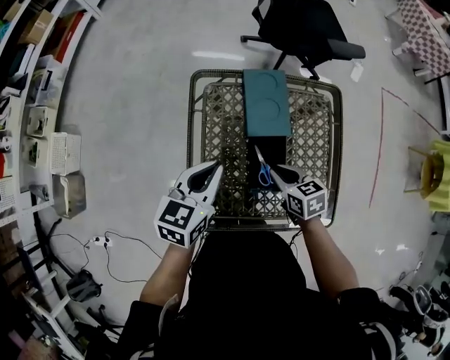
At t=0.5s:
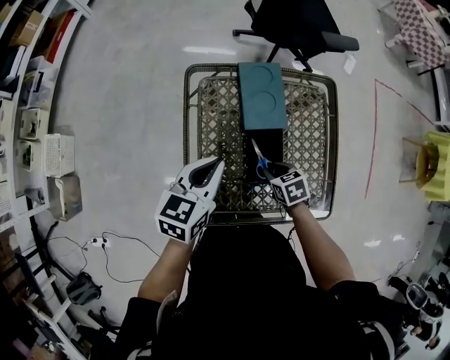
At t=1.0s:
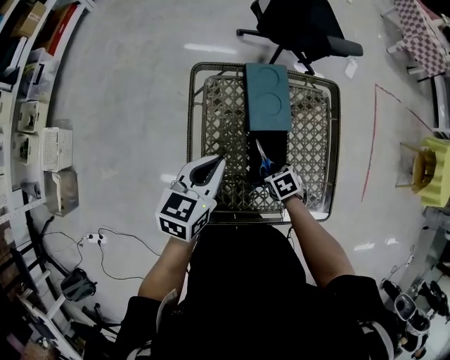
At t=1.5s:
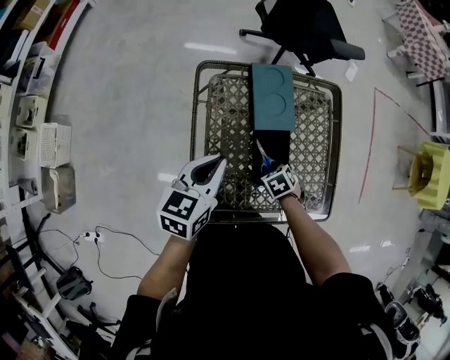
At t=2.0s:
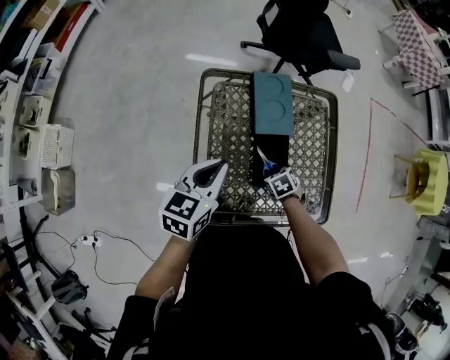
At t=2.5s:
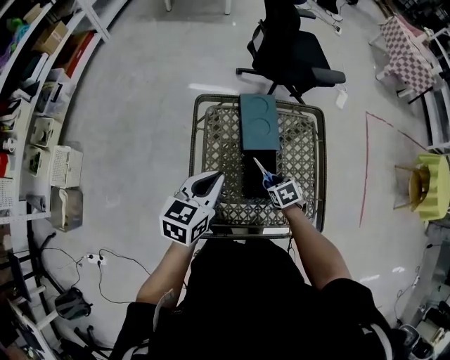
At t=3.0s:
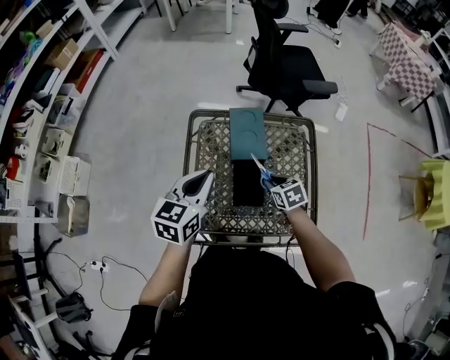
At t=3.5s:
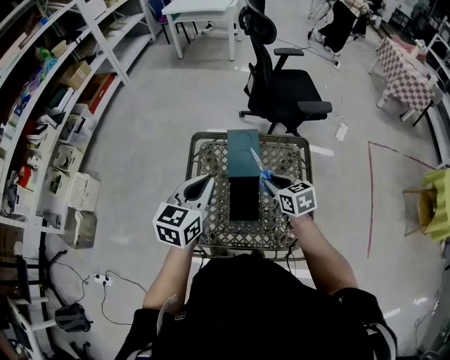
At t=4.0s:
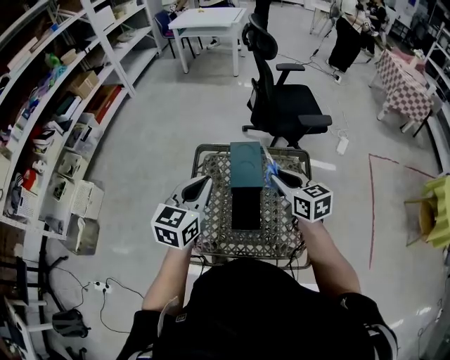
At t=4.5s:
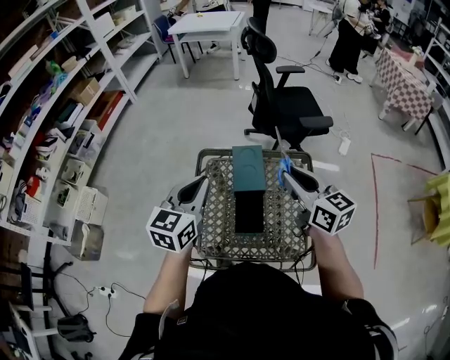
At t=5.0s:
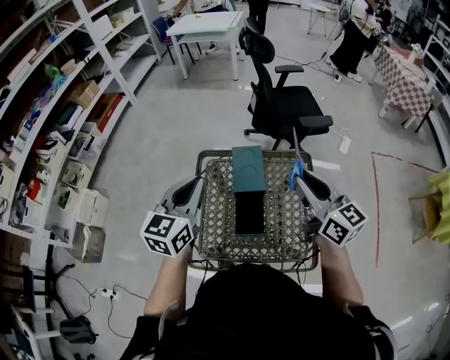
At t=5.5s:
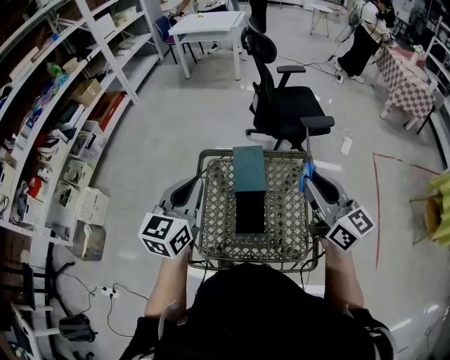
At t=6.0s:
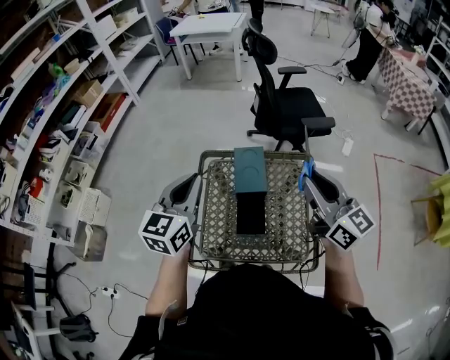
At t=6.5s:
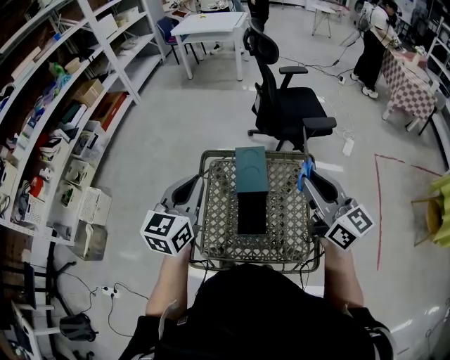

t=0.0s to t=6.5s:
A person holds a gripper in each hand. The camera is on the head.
t=0.0s to t=2.0s: The right gripper shifts approximately 15 cm downward, and tilts its fingers roughly 30 degrees downward.
t=2.0s to t=4.5s: The left gripper is displaced upward by some 15 cm, and changes its angle by about 30 degrees. The right gripper moves upward, some 40 cm, and angles its fingers upward, by approximately 70 degrees.
t=4.5s to t=6.5s: The right gripper is displaced upward by some 5 cm.

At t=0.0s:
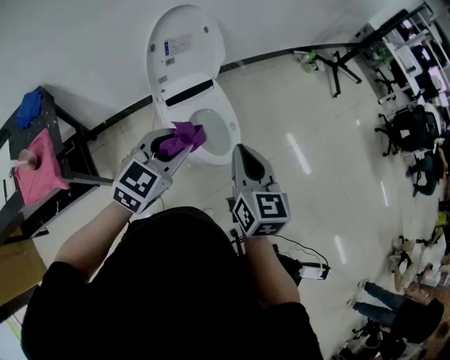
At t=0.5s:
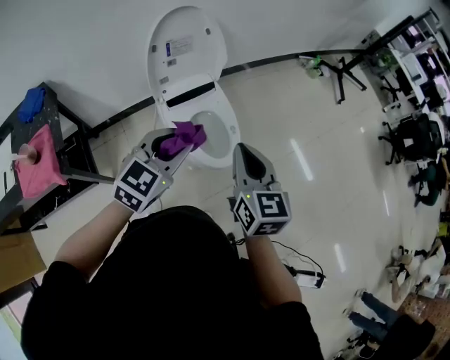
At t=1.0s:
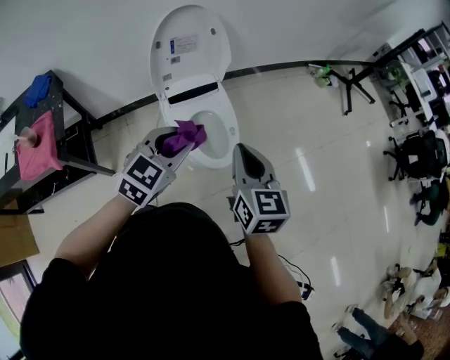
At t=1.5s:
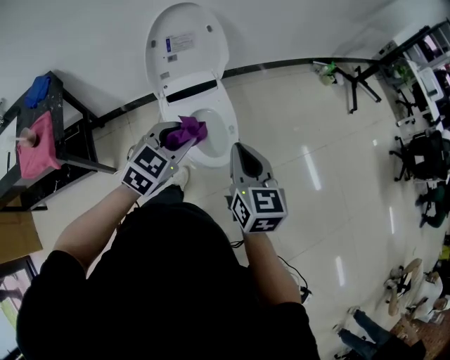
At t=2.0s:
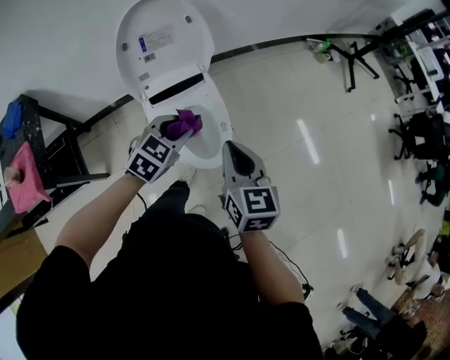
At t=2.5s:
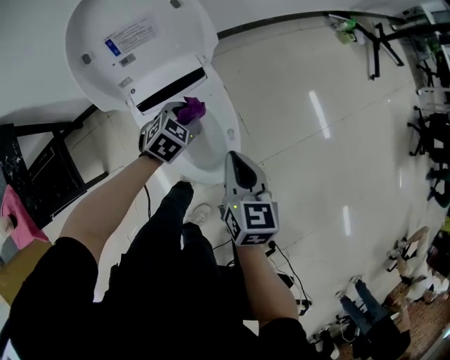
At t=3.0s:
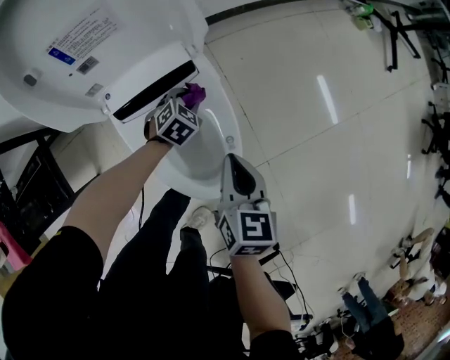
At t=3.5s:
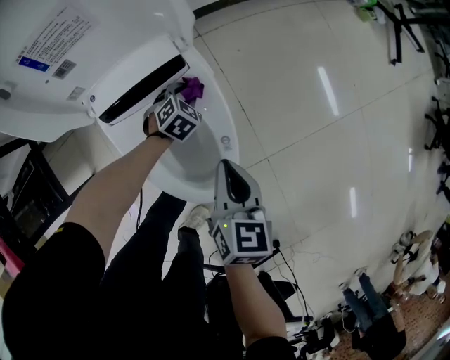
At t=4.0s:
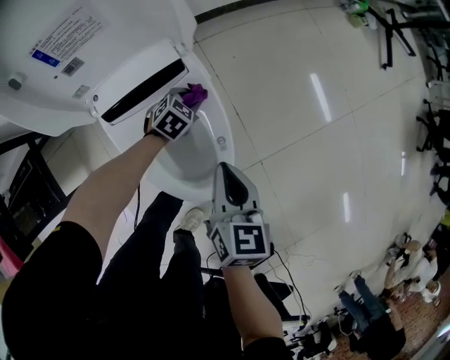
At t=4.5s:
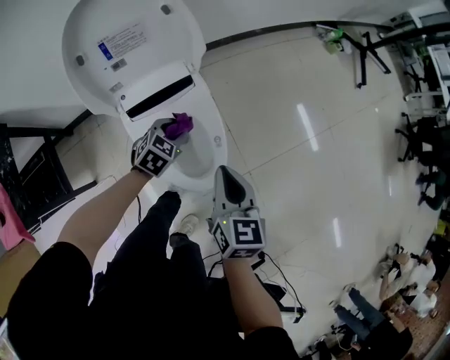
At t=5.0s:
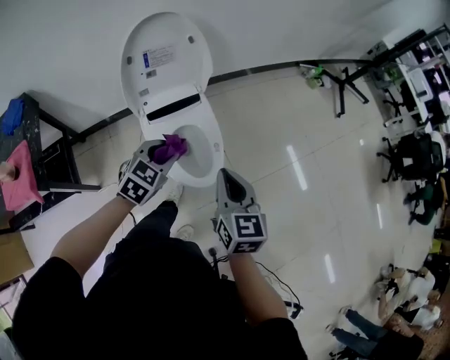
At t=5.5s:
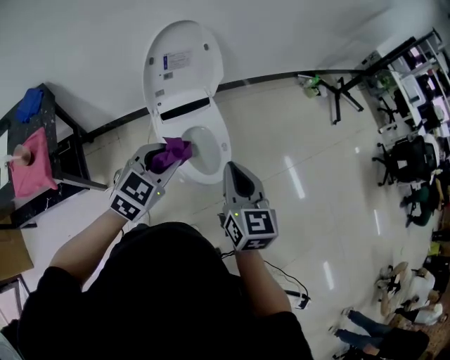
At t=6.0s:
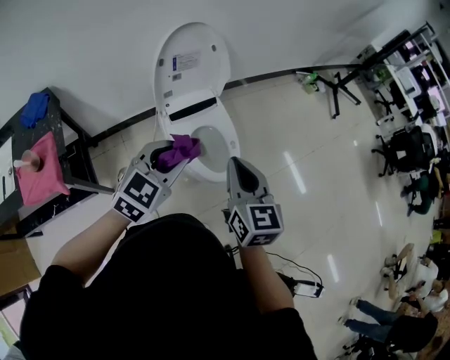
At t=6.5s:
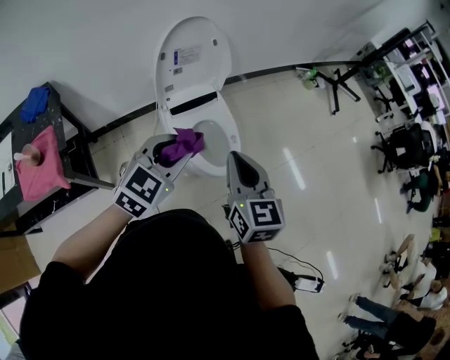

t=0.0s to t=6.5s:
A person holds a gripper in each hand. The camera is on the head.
t=0.0s to t=2.0s: Both grippers move forward, downward and to the right, about 20 cm.
t=2.0s to t=4.5s: The right gripper goes roughly 15 cm downward and forward, while the left gripper heads downward and forward, covering roughly 25 cm.
t=4.5s to t=6.5s: The left gripper moves upward and backward, about 50 cm, and rotates approximately 30 degrees. Meanwhile the right gripper moves upward, backward and to the left, about 35 cm, and turns by some 20 degrees.

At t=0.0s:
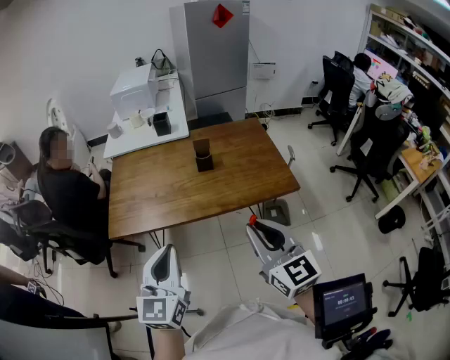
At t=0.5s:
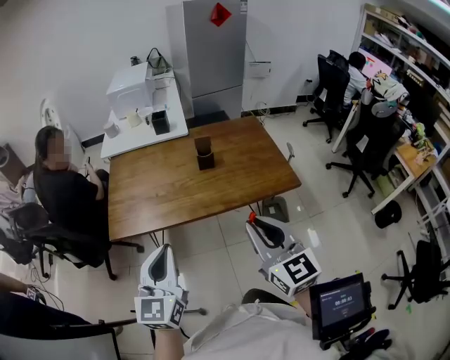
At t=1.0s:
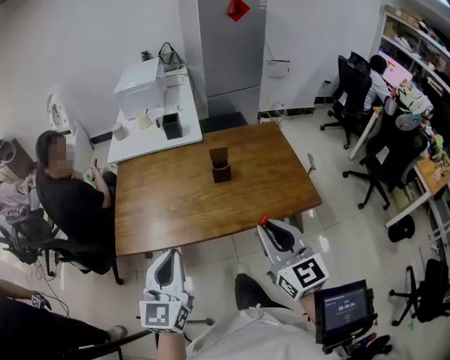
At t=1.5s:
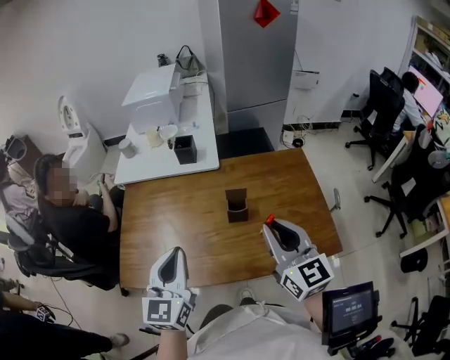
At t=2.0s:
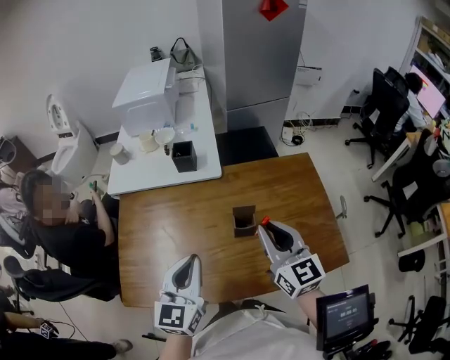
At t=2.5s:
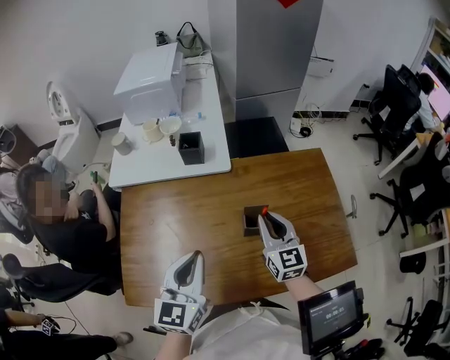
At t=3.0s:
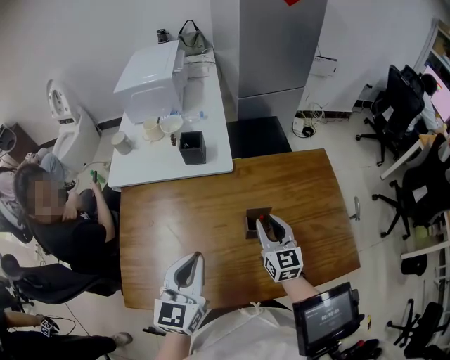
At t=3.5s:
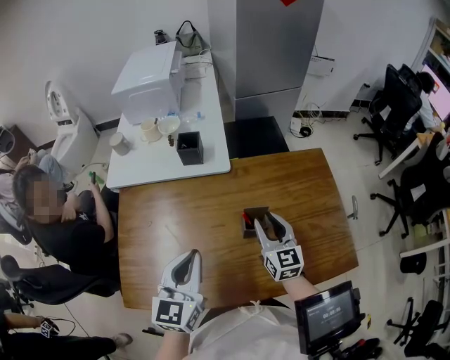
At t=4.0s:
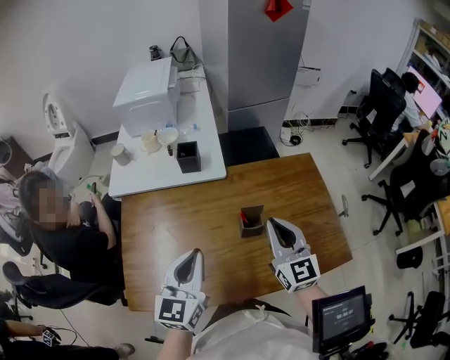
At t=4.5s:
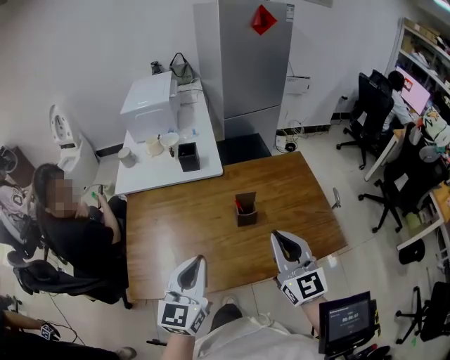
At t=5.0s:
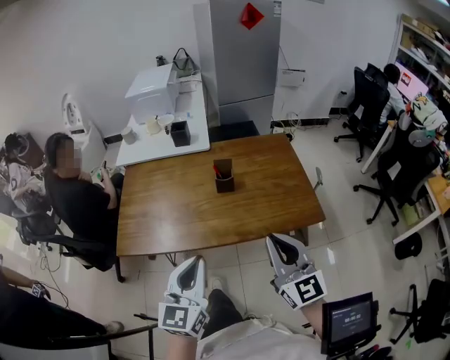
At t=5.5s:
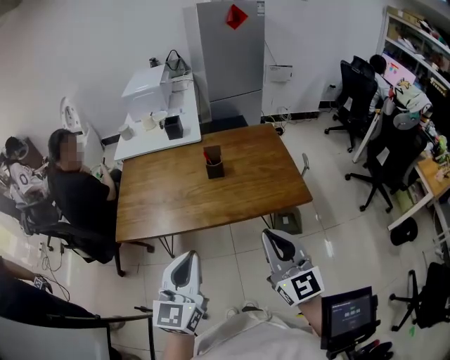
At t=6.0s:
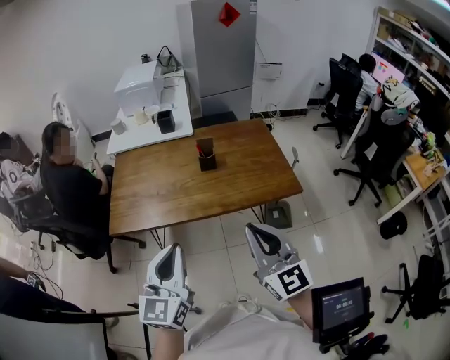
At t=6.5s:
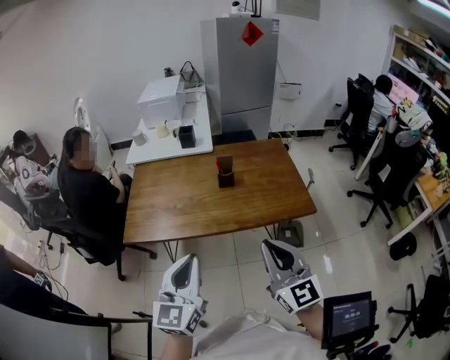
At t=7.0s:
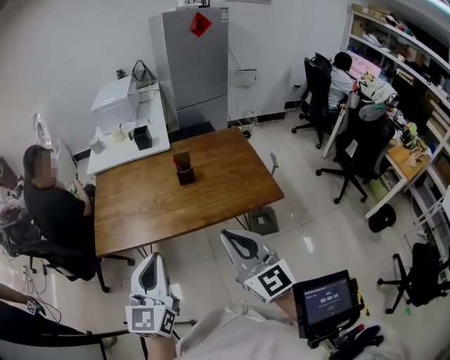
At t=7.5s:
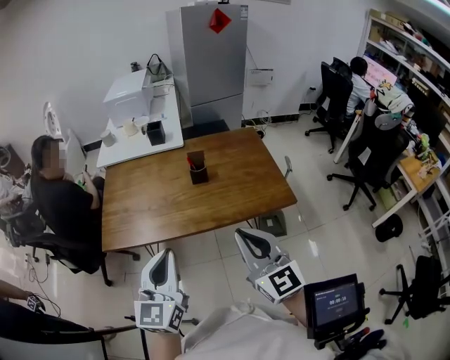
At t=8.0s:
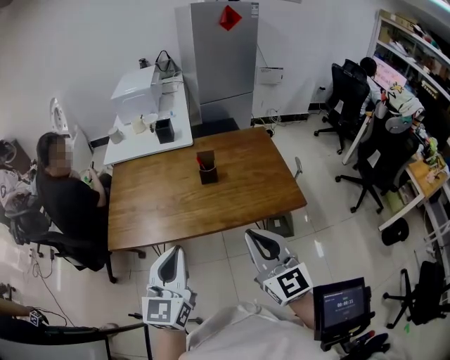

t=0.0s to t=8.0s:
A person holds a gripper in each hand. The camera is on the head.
t=0.0s to t=2.0s: Both grippers move forward, roughly 40 cm.
t=2.0s to t=4.0s: The right gripper reaches some 15 cm downward, then returns, and opens and closes again.
t=4.0s to t=6.0s: Both grippers are carried backward, about 40 cm.
t=6.0s to t=8.0s: Both grippers travel together forward, about 5 cm.

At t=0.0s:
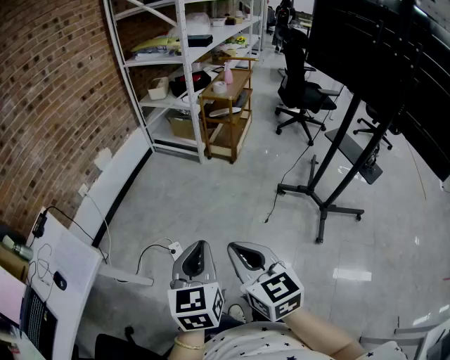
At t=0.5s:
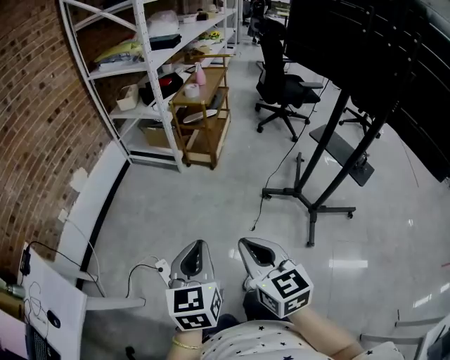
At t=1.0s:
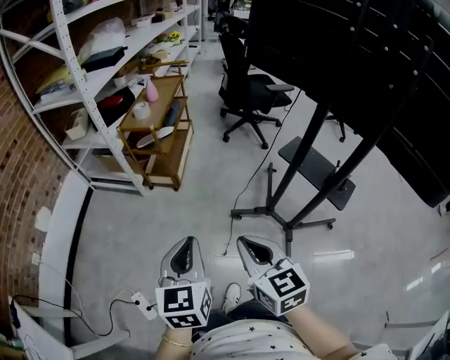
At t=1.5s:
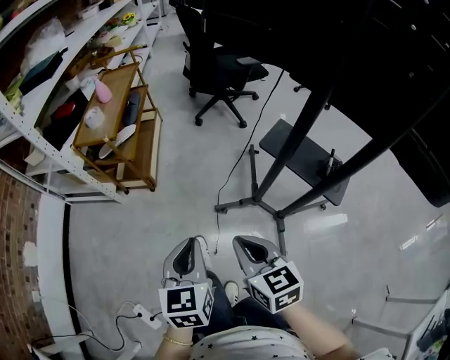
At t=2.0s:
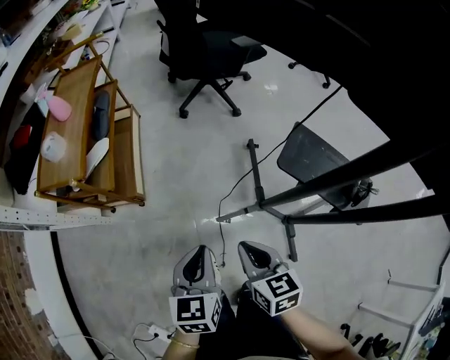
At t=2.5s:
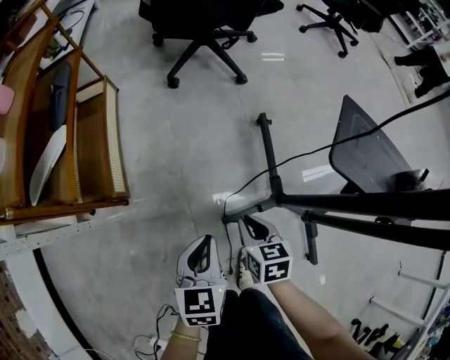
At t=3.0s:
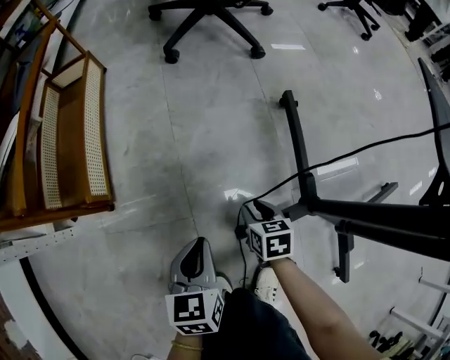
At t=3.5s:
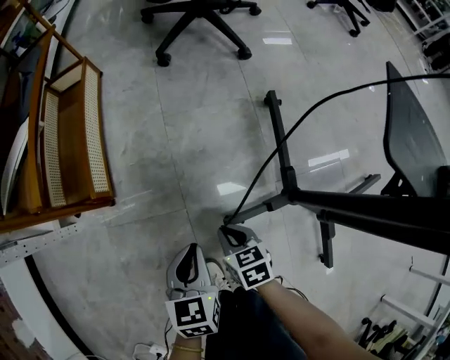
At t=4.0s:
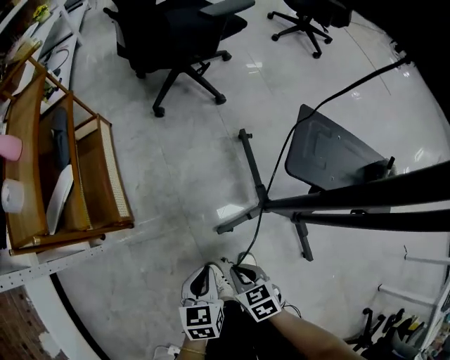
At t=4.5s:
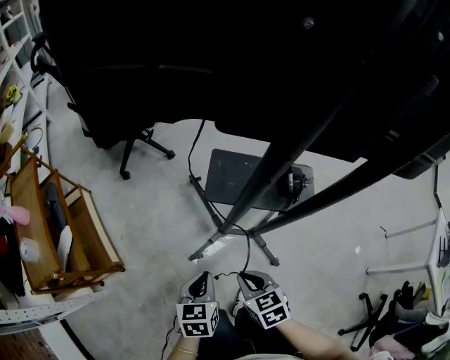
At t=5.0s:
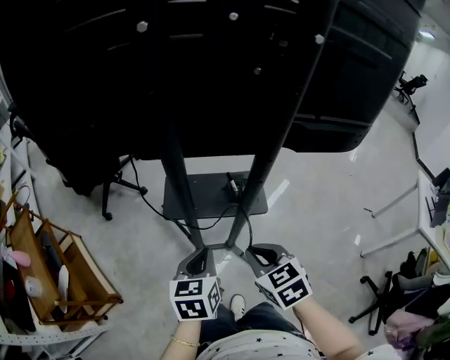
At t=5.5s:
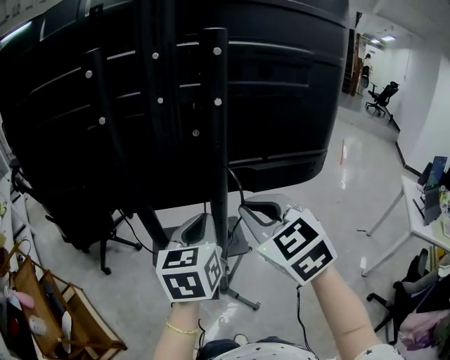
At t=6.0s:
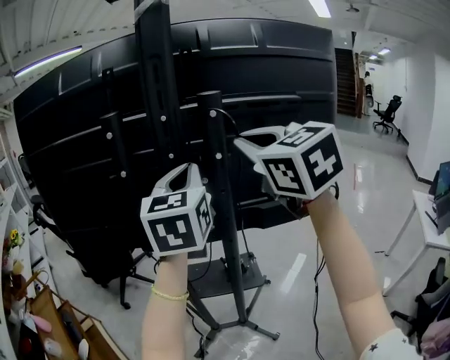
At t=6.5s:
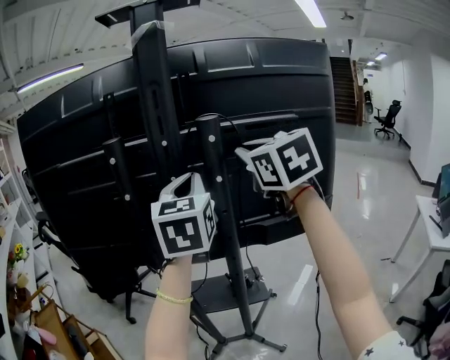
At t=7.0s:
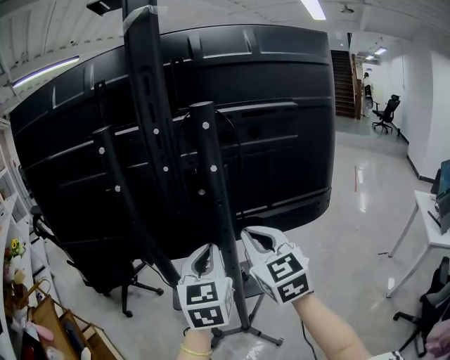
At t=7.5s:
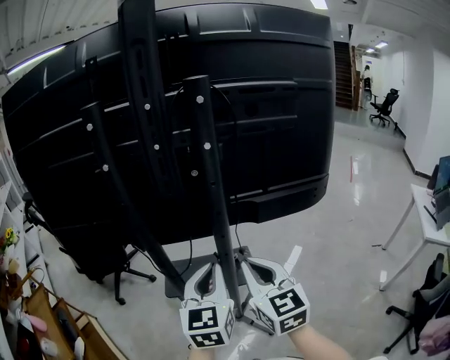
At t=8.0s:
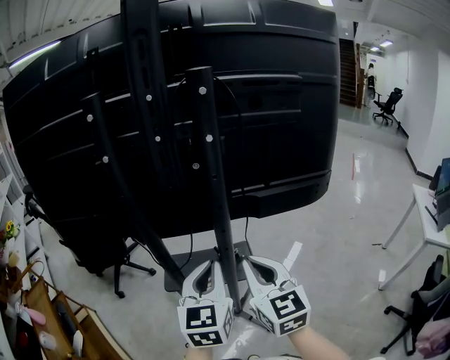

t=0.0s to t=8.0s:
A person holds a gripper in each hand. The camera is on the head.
t=0.0s to t=2.0s: The pair of grippers is taken roughly 80 cm. The left gripper swivels roughly 40 degrees; the right gripper changes its angle by some 40 degrees.
t=2.0s to t=4.0s: Both grippers travel together downward, roughly 25 cm. The right gripper opens, then closes once more.
t=4.0s to t=6.0s: The two grippers travel together, roughly 40 cm. Both grippers move upward, approximately 80 cm. The left gripper tips its fingers upward by some 50 degrees. Meanwhile the right gripper tilts its fingers roughly 50 degrees upward.
t=6.0s to t=8.0s: Both grippers move downward, some 25 cm.
